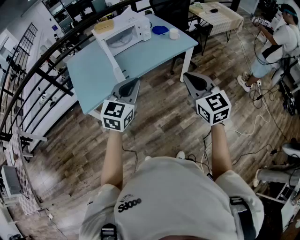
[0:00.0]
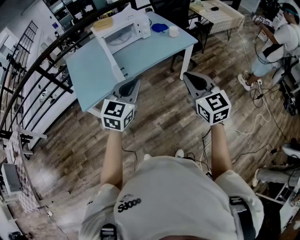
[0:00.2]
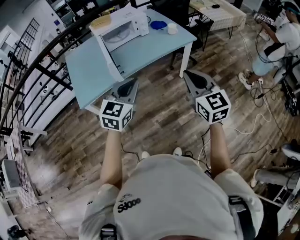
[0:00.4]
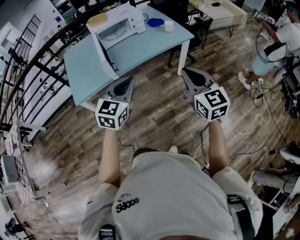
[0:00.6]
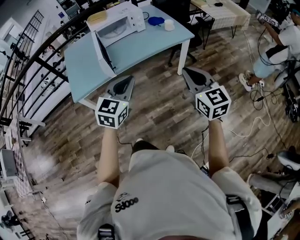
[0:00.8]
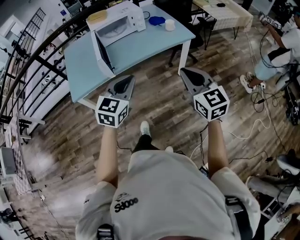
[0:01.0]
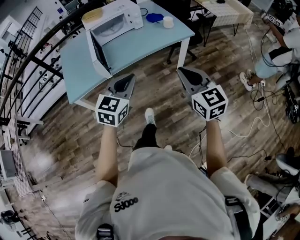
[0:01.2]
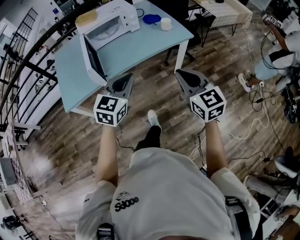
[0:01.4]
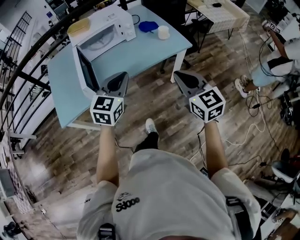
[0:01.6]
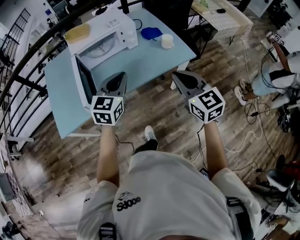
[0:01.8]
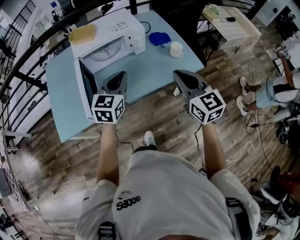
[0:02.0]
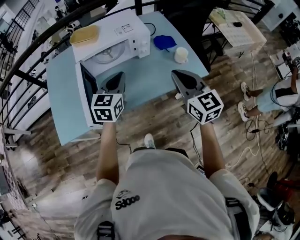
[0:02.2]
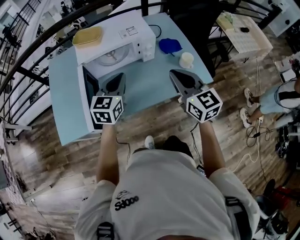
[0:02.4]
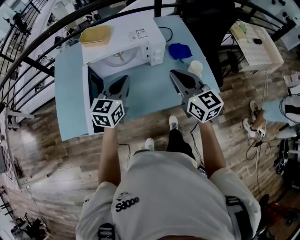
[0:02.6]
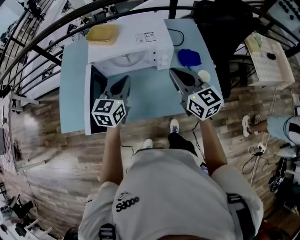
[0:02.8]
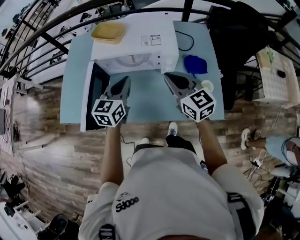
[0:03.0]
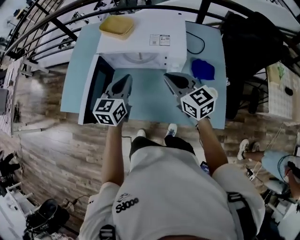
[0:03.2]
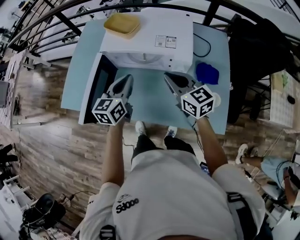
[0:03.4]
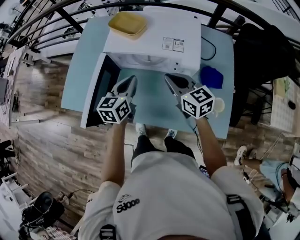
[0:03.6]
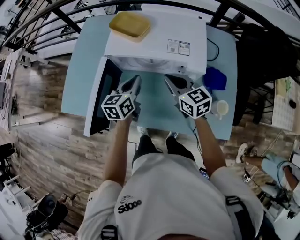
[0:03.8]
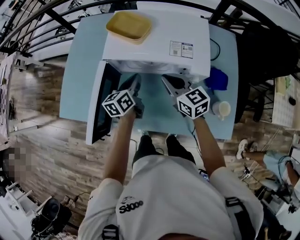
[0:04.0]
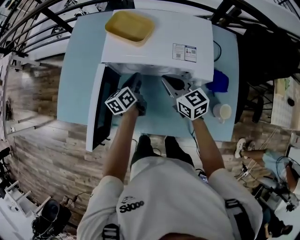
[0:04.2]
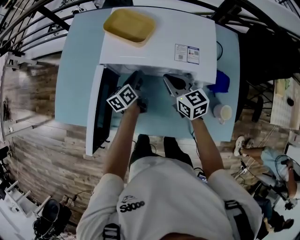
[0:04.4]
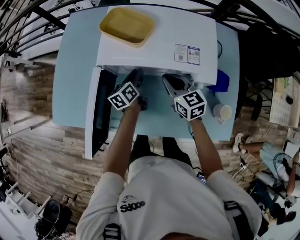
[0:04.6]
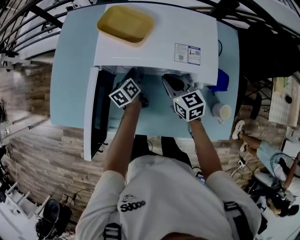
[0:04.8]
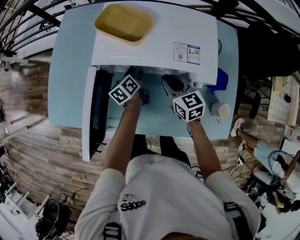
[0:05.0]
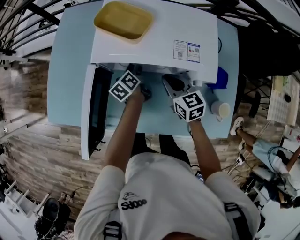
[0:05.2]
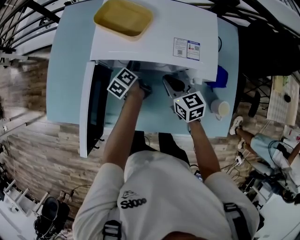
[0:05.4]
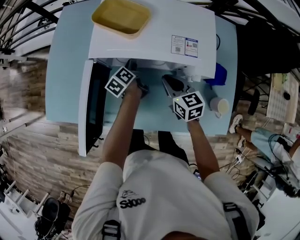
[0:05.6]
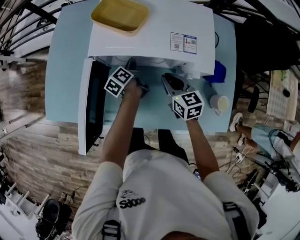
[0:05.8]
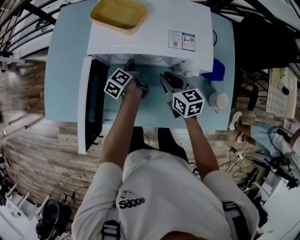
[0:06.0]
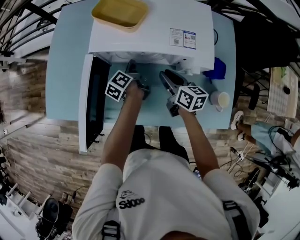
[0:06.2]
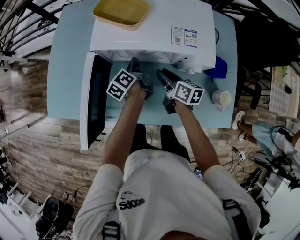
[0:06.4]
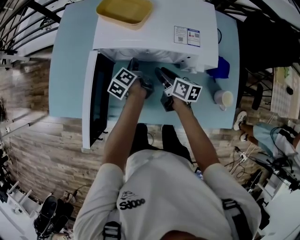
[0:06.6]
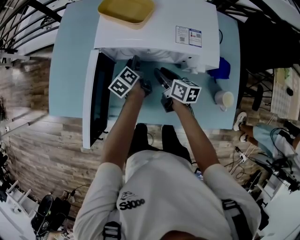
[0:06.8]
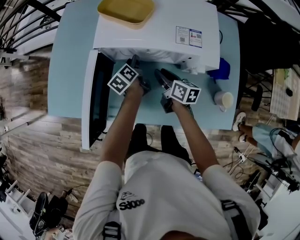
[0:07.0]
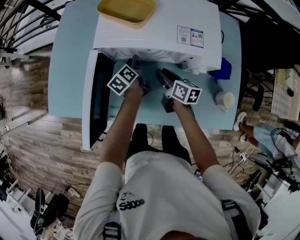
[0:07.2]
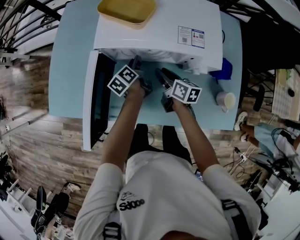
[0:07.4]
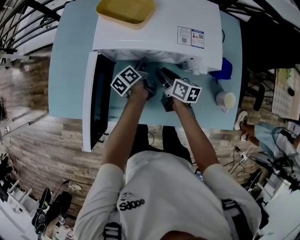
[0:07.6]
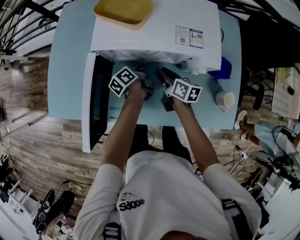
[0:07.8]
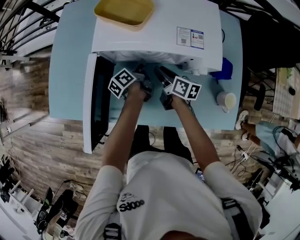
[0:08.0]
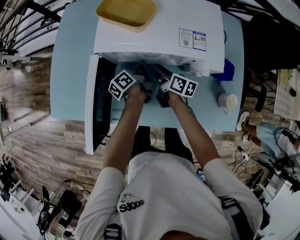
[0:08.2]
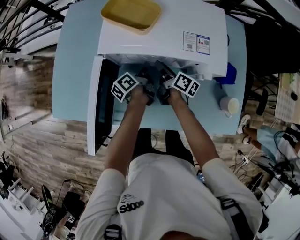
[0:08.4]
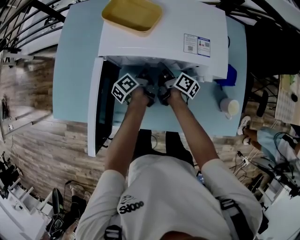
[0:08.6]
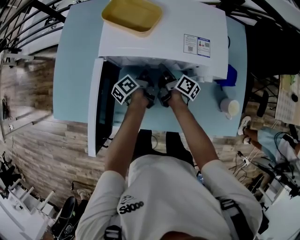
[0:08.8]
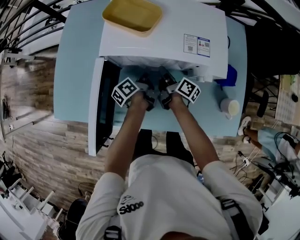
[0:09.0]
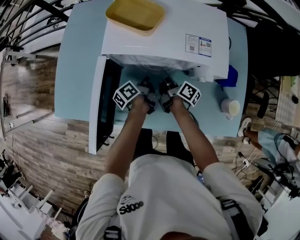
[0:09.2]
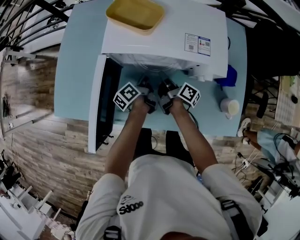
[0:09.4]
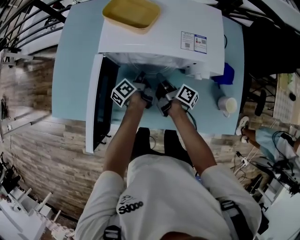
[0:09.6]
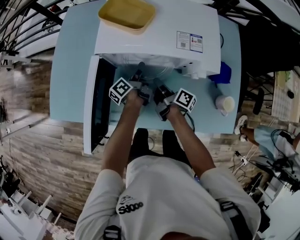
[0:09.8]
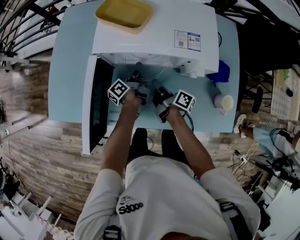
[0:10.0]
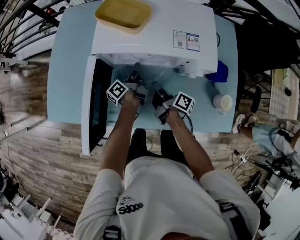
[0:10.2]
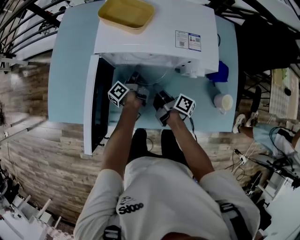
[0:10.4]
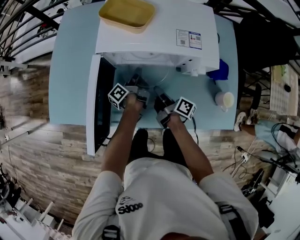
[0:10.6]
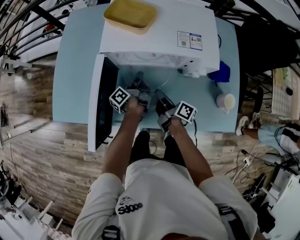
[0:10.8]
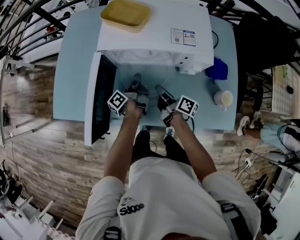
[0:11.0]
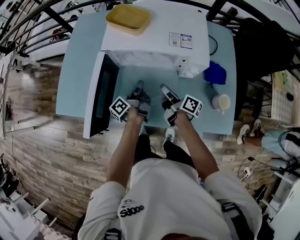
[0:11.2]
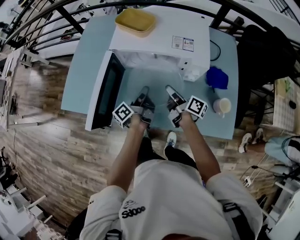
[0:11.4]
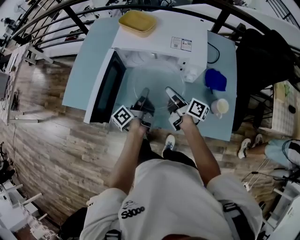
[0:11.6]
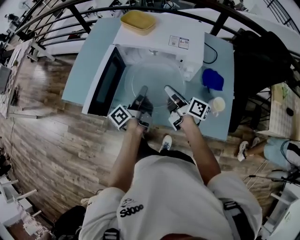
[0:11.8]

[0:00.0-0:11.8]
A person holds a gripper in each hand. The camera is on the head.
0:00.0 to 0:01.4: Both grippers travel together to the right, forward and downward, about 20 cm.
0:01.4 to 0:03.0: The two grippers travel together, approximately 50 cm. The left gripper changes its angle by roughly 40 degrees, while the right gripper rotates roughly 40 degrees.
0:03.0 to 0:04.4: The left gripper heads downward and forward, covering approximately 25 cm, and twists some 50 degrees counterclockwise, seen from behind. Meanwhile the right gripper travels forward and downward by some 25 cm.
0:04.4 to 0:06.0: The right gripper changes place by about 5 cm. The left gripper goes approximately 5 cm downward, swivels some 30 degrees, and opens, then closes again.
0:06.0 to 0:07.4: The left gripper opens its fingers; the right gripper heads downward, covering approximately 5 cm, and swivels about 30 degrees.
0:07.4 to 0:08.8: The left gripper swivels about 20 degrees, and closes, while the right gripper goes roughly 5 cm forward, and rotates roughly 30 degrees.
0:08.8 to 0:10.4: The right gripper moves backward, roughly 10 cm. The left gripper opens and closes again.
0:10.4 to 0:11.8: The right gripper goes approximately 20 cm upward and backward, and turns by approximately 30 degrees, while the left gripper goes roughly 25 cm backward and upward.

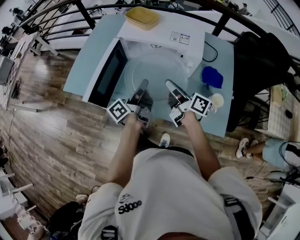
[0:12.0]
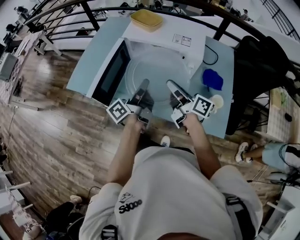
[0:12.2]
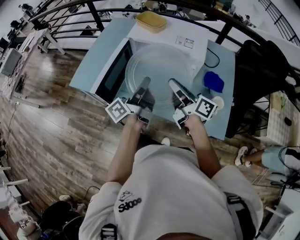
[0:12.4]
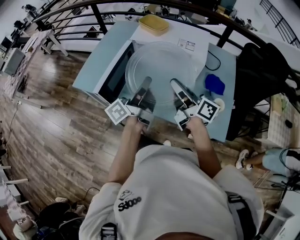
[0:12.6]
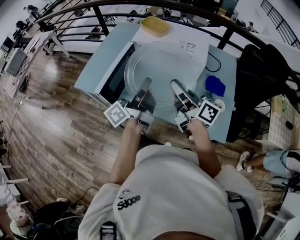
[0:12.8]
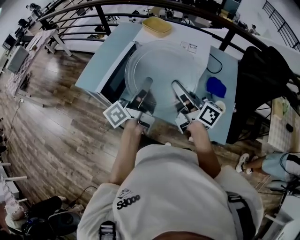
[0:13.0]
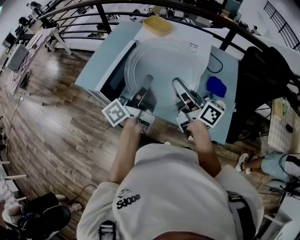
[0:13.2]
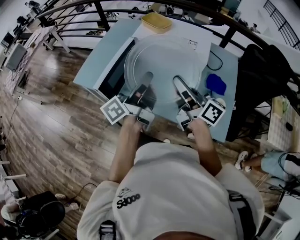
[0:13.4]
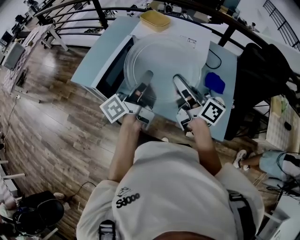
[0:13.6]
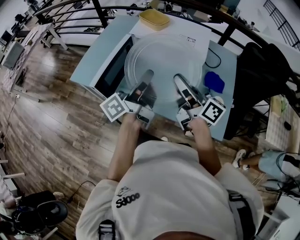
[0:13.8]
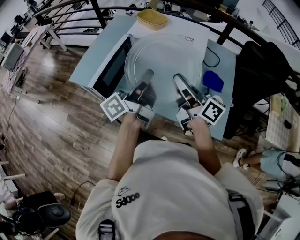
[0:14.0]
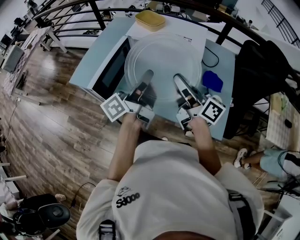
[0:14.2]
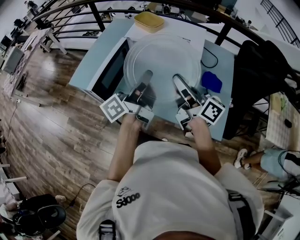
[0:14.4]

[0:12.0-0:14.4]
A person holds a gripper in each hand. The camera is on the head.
0:12.0 to 0:13.2: Both grippers move upward and backward, approximately 15 cm. The right gripper swivels approximately 20 degrees.
0:13.2 to 0:14.4: The grippers make only small movements.

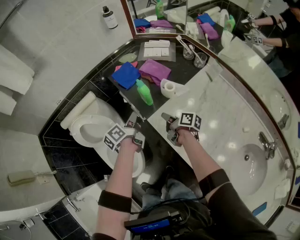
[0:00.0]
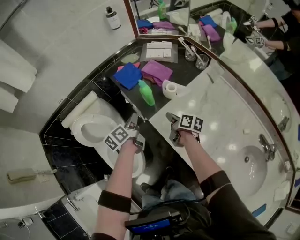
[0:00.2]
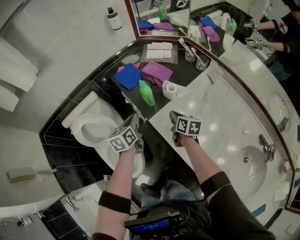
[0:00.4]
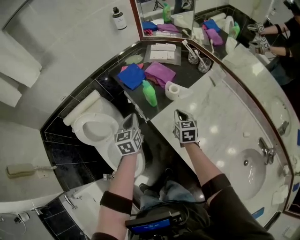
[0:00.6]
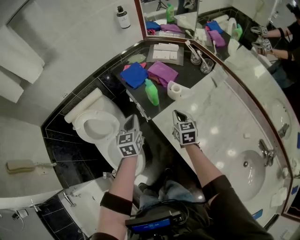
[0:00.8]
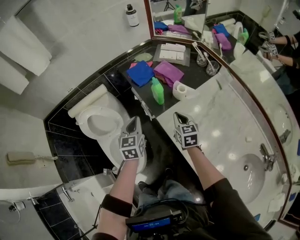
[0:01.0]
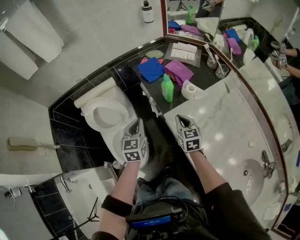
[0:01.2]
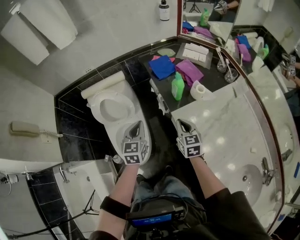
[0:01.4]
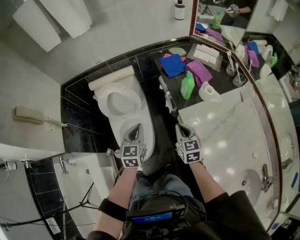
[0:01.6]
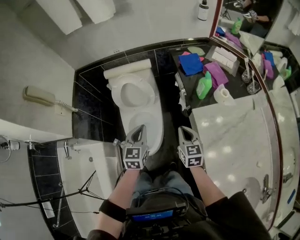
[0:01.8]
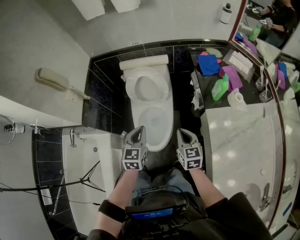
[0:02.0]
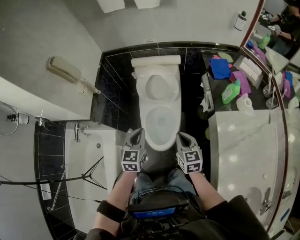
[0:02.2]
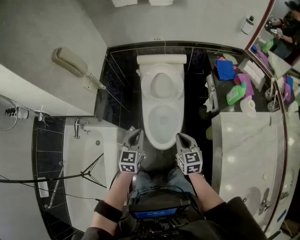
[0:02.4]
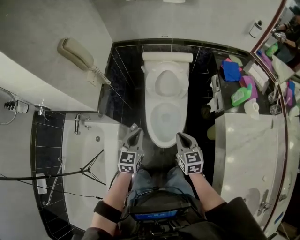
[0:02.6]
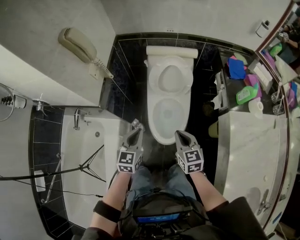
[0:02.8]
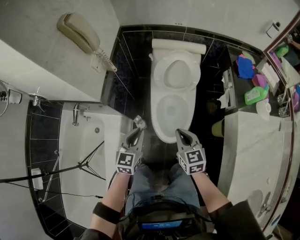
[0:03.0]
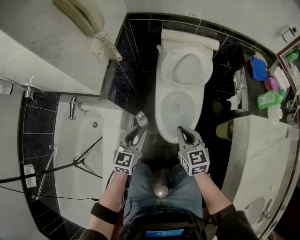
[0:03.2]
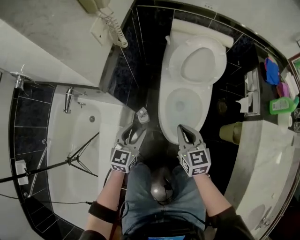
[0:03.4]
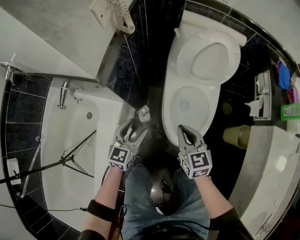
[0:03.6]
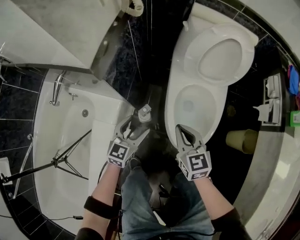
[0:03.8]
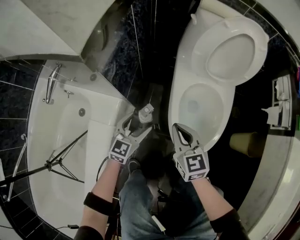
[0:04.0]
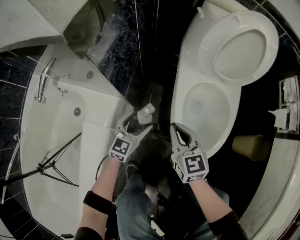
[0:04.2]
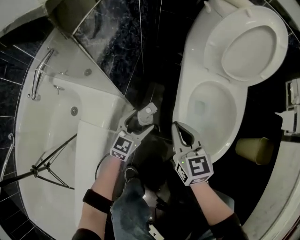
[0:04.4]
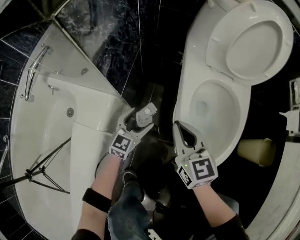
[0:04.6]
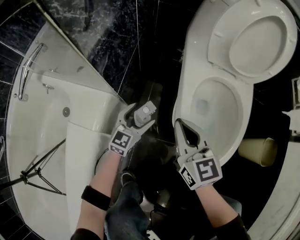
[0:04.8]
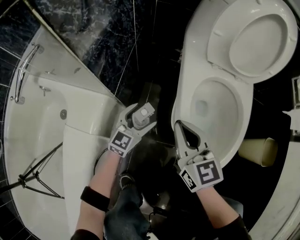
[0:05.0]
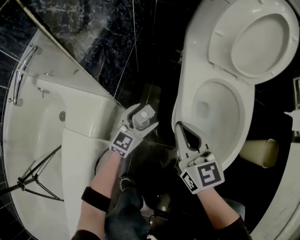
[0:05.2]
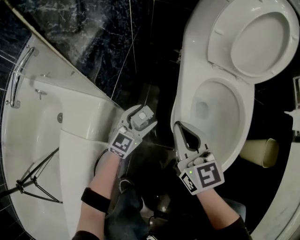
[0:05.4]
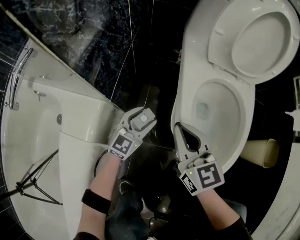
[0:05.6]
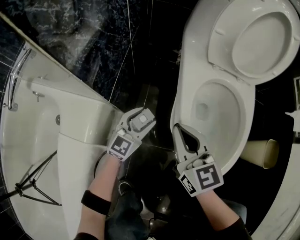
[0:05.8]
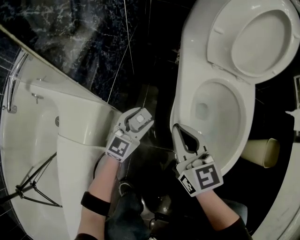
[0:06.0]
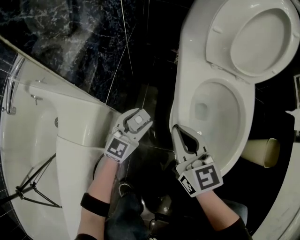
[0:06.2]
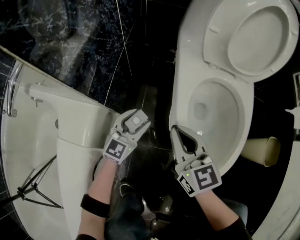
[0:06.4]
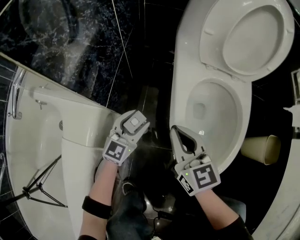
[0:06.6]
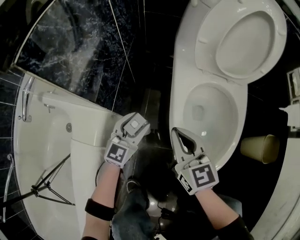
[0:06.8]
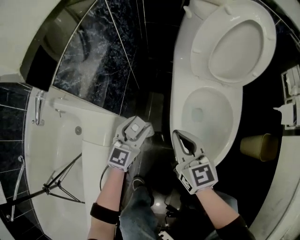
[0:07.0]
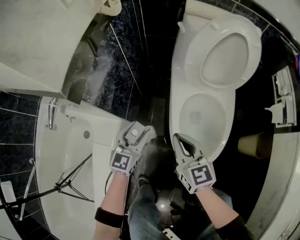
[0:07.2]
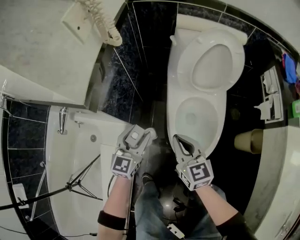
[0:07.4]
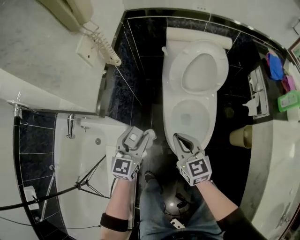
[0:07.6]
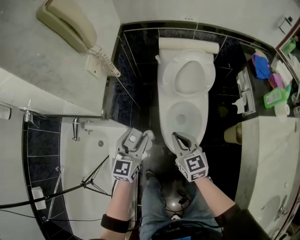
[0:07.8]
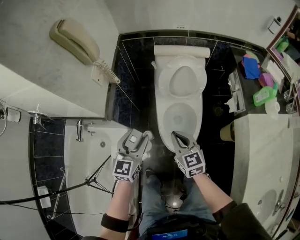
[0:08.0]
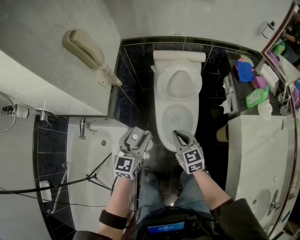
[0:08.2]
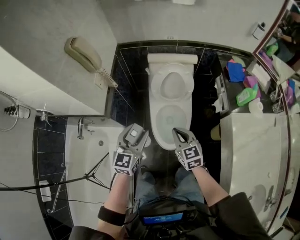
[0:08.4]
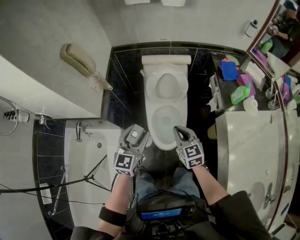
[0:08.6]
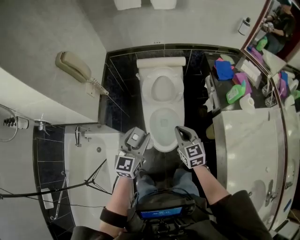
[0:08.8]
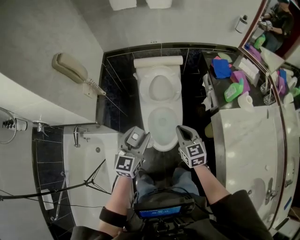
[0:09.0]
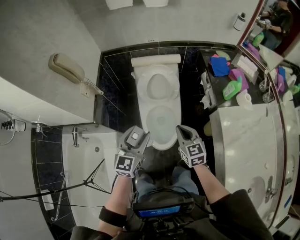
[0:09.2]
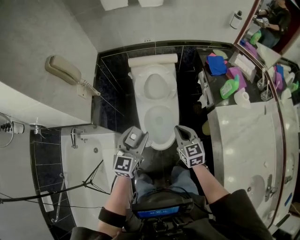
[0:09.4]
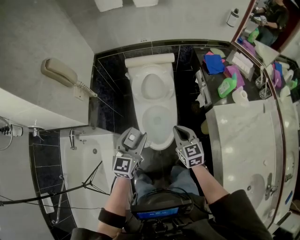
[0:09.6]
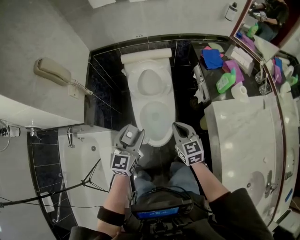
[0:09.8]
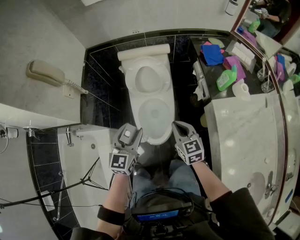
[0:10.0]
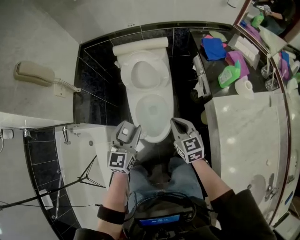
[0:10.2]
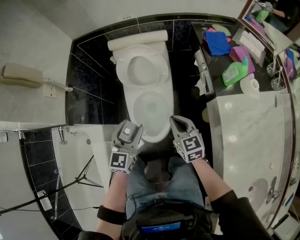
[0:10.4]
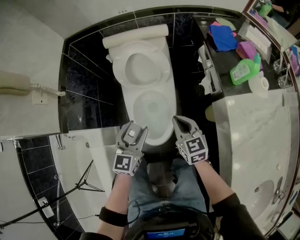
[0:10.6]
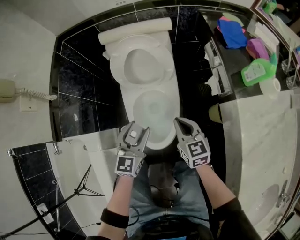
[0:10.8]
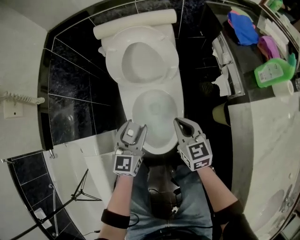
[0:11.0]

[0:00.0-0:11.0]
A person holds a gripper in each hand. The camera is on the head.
0:00.0 to 0:01.6: The left gripper moves backward and to the left, roughly 20 cm, and rotates around the line of its fingers by about 60 degrees, clockwise from behind; the right gripper shifts roughly 15 cm to the left, backward and upward, and twists some 70 degrees counterclockwise, seen from behind.
0:01.6 to 0:03.2: The grippers both shift to the left by approximately 40 cm. The right gripper turns by roughly 30 degrees.
0:03.2 to 0:04.8: The two grippers go approximately 40 cm downward. The left gripper opens up.
0:04.8 to 0:06.2: The left gripper closes its fingers.
0:06.2 to 0:07.8: Both grippers move upward, roughly 40 cm.
0:07.8 to 0:09.4: The left gripper shifts roughly 25 cm upward and to the right. The right gripper is displaced to the right and upward by approximately 25 cm.
0:09.4 to 0:11.0: Both grippers travel together downward and forward, about 30 cm.
